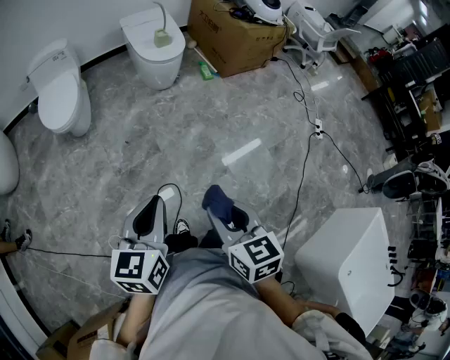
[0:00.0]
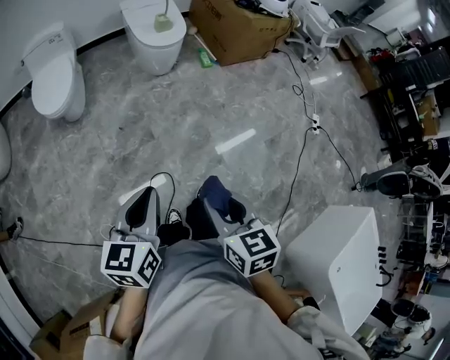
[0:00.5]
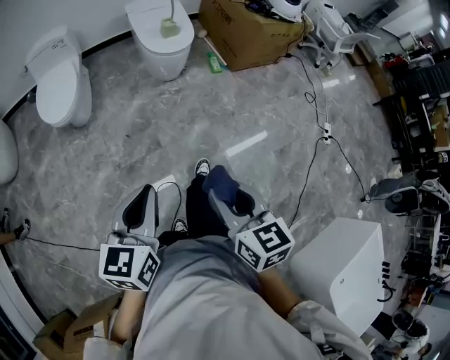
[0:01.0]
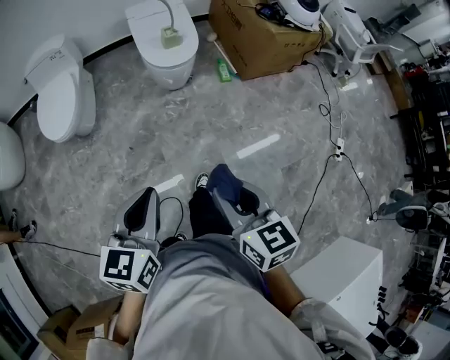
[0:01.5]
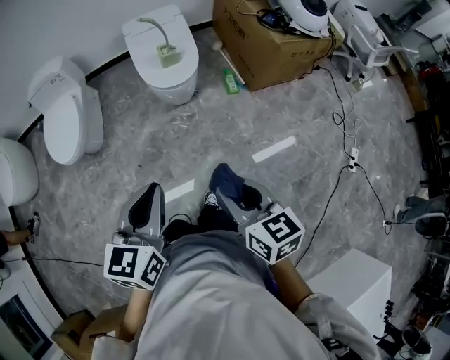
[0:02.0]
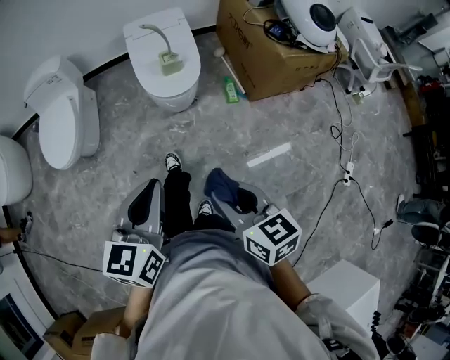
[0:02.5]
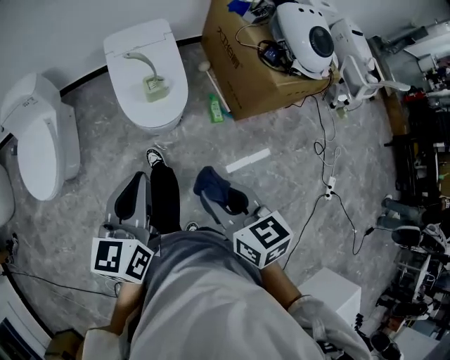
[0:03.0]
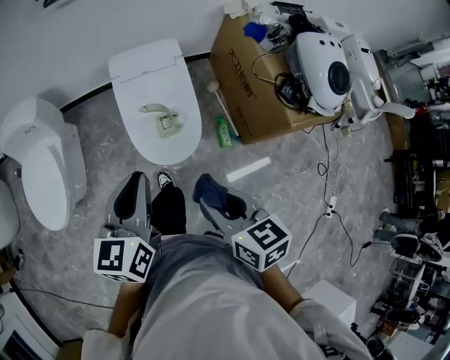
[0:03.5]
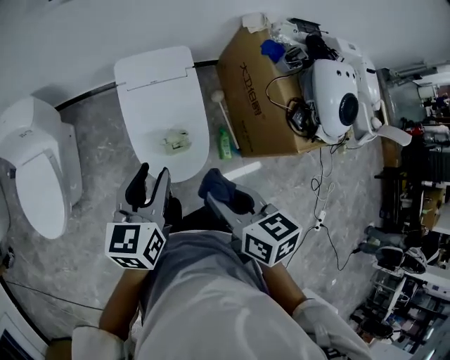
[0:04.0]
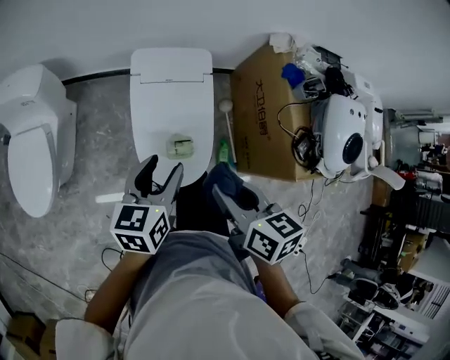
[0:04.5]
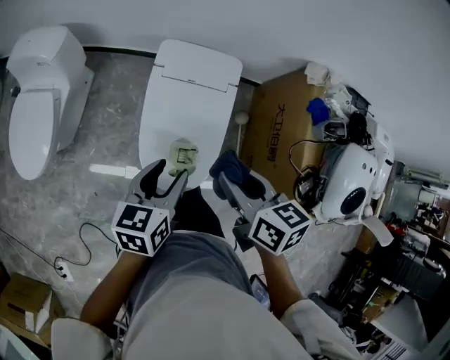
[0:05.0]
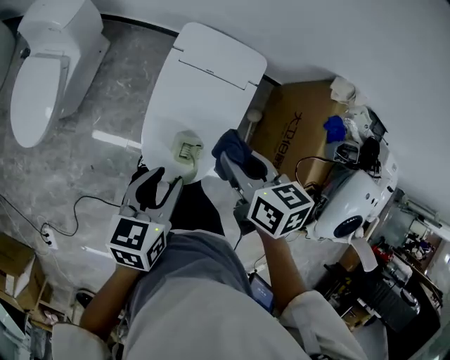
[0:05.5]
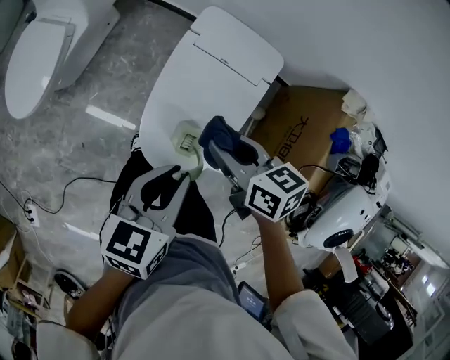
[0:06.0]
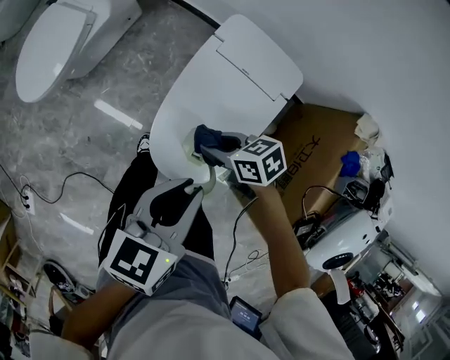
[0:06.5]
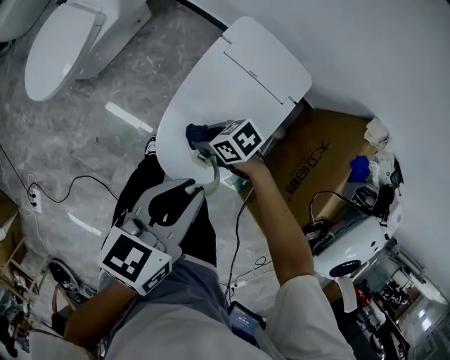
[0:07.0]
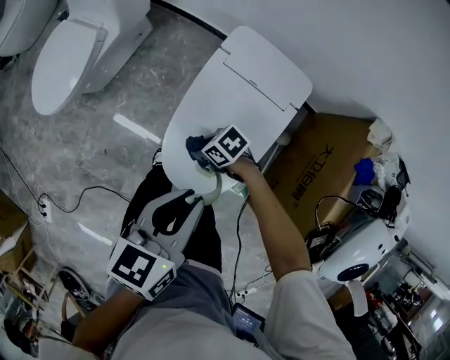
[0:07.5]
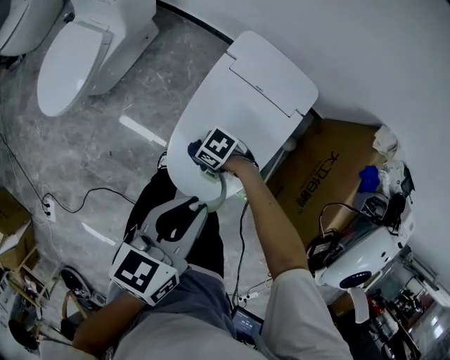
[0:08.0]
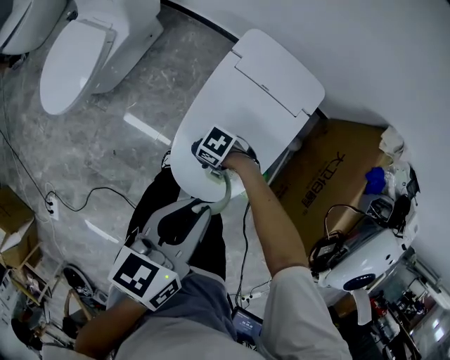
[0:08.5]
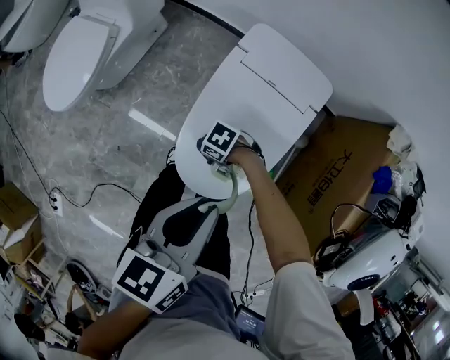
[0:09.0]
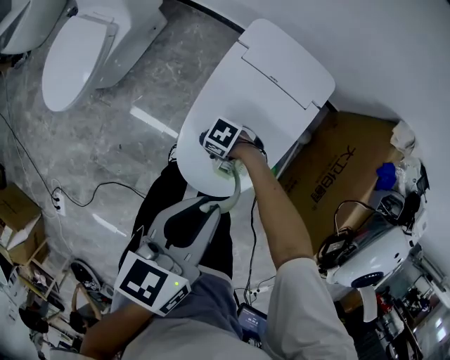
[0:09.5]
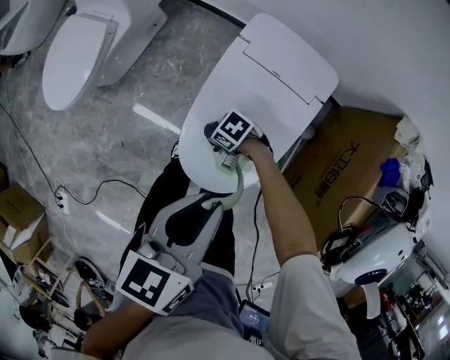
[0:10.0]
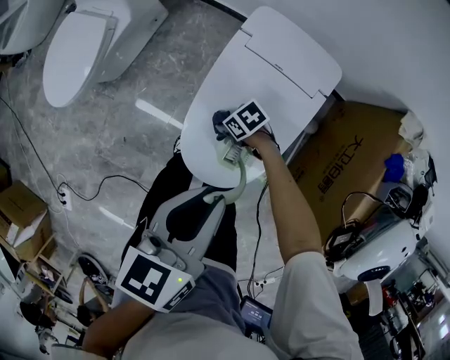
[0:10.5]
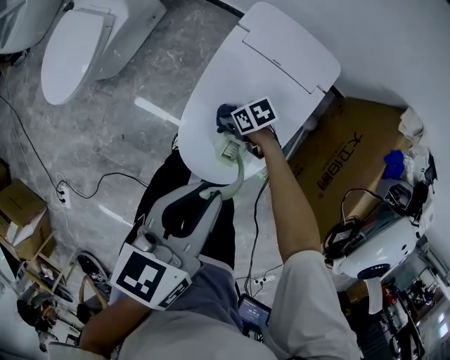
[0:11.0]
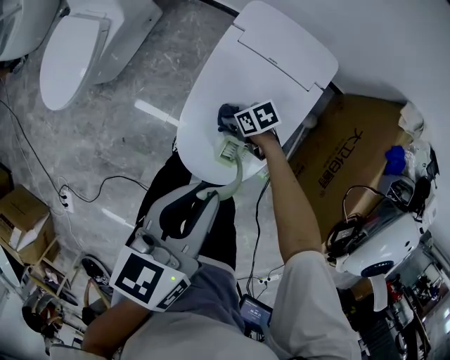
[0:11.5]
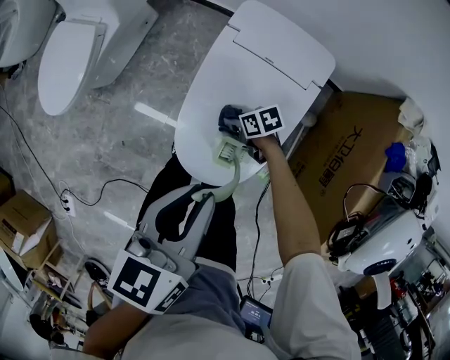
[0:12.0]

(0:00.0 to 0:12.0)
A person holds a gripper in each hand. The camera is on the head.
0:00.0 - 0:02.0: The pair of grippers is taken forward, some 50 cm.
0:02.0 - 0:04.0: The two grippers travel together, forward, about 60 cm.
0:04.0 - 0:06.0: The right gripper shifts by approximately 30 cm, and turns by approximately 40 degrees. The left gripper shifts approximately 10 cm downward, and changes its angle by roughly 30 degrees.
0:06.0 - 0:08.0: The right gripper moves downward, some 25 cm, and rotates roughly 60 degrees.
0:08.0 - 0:10.0: The right gripper is displaced downward by some 5 cm.
0:10.0 - 0:12.0: The right gripper shifts by roughly 10 cm, and rotates about 40 degrees.

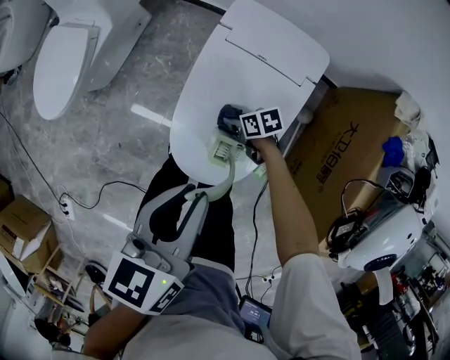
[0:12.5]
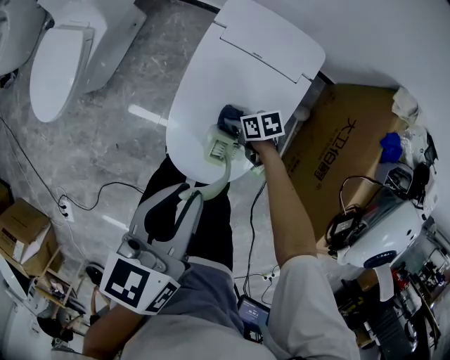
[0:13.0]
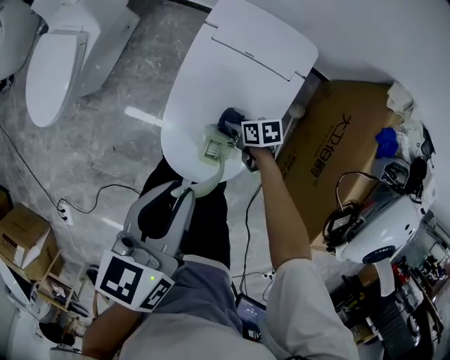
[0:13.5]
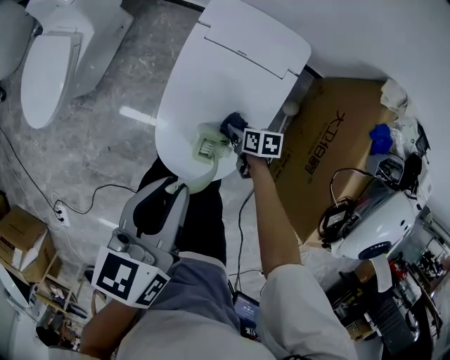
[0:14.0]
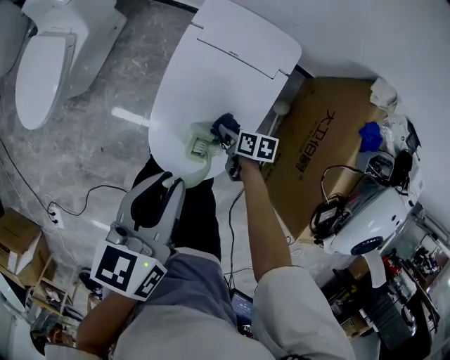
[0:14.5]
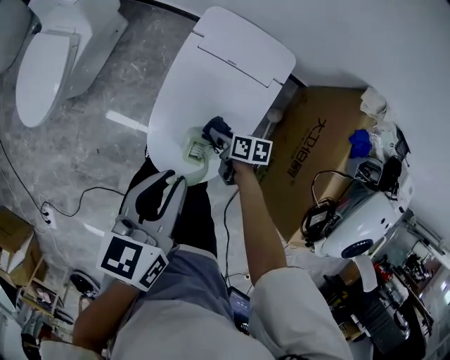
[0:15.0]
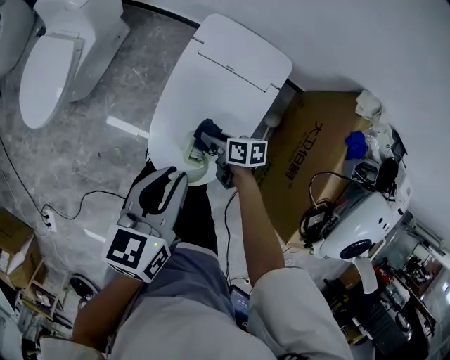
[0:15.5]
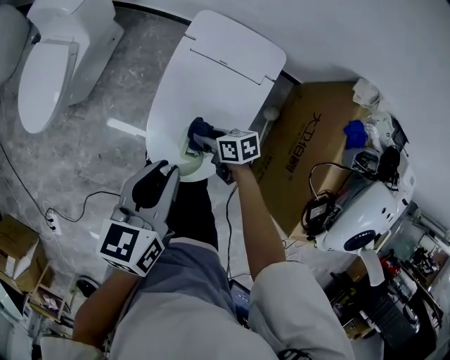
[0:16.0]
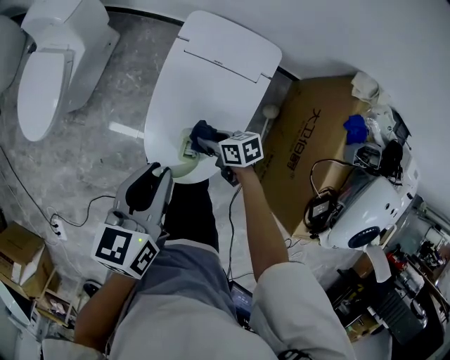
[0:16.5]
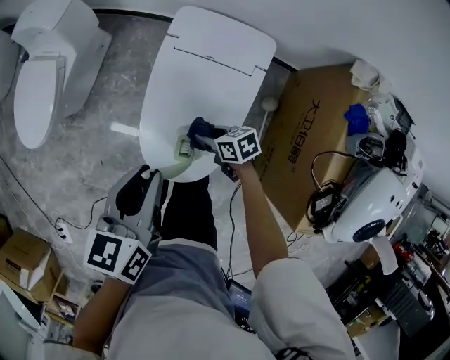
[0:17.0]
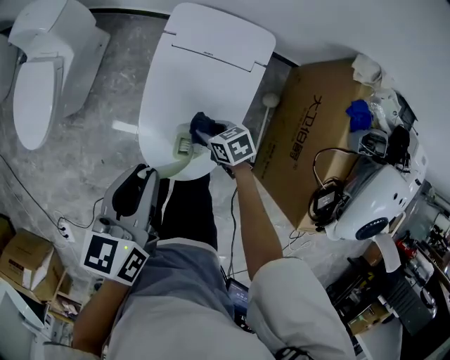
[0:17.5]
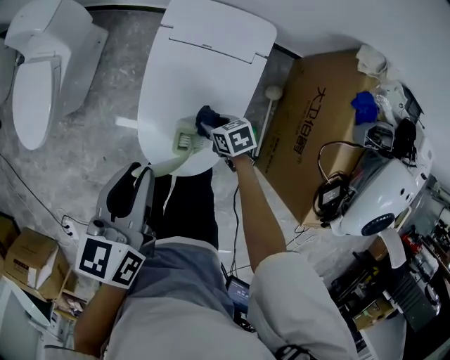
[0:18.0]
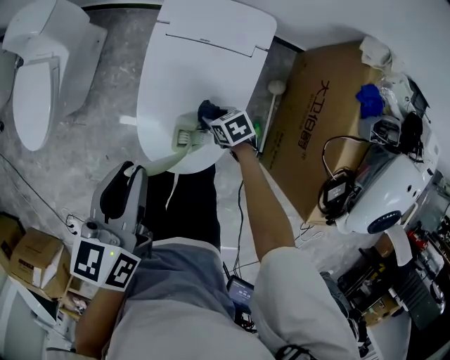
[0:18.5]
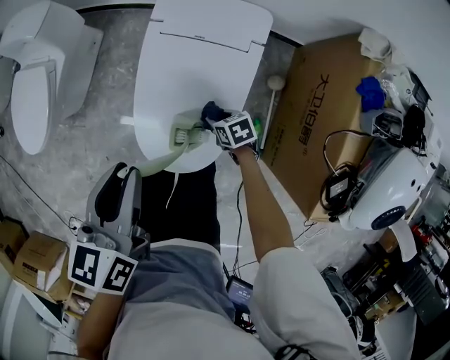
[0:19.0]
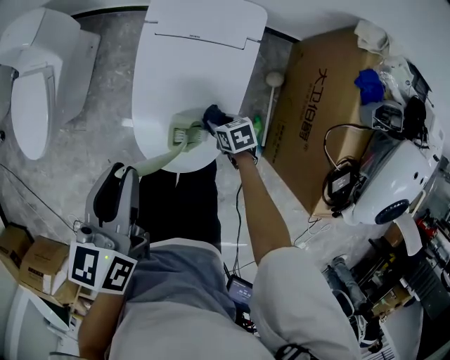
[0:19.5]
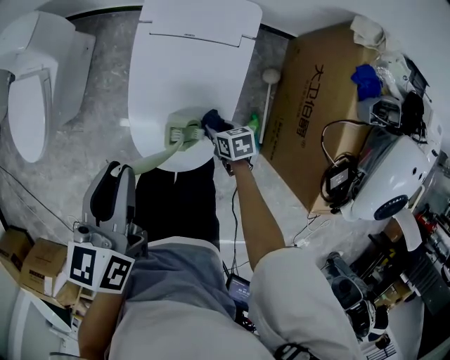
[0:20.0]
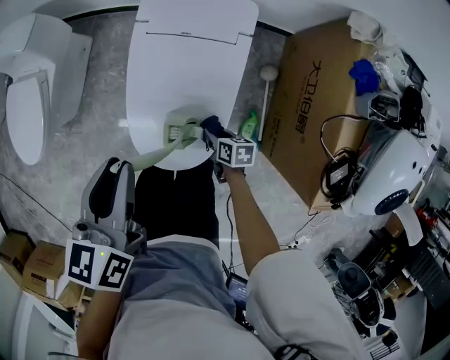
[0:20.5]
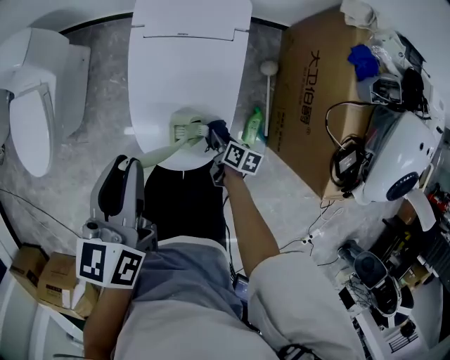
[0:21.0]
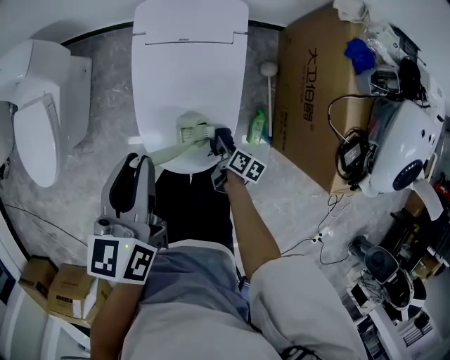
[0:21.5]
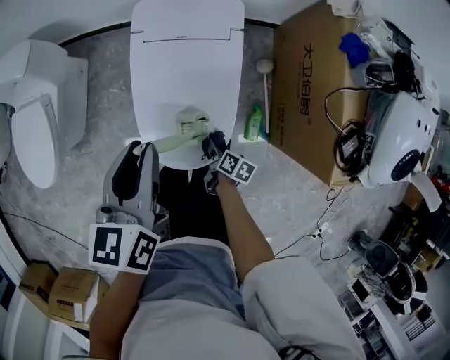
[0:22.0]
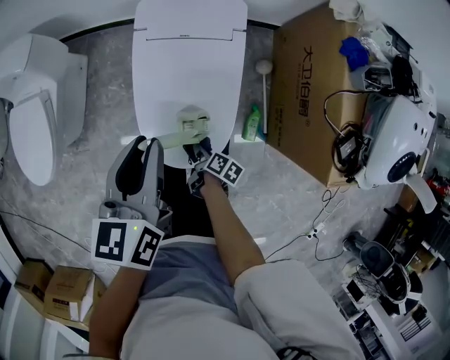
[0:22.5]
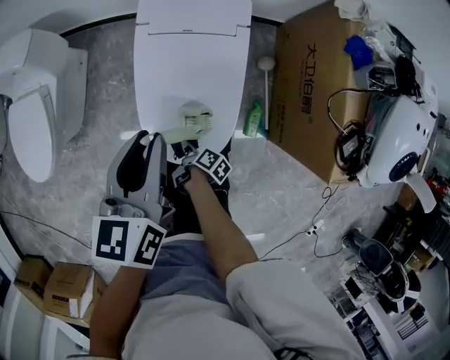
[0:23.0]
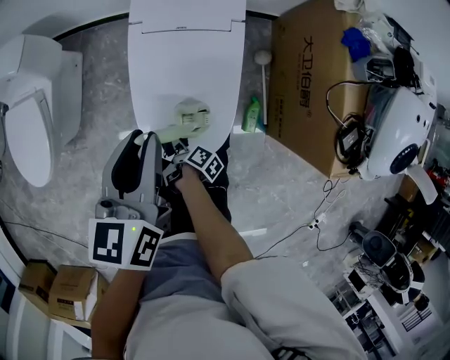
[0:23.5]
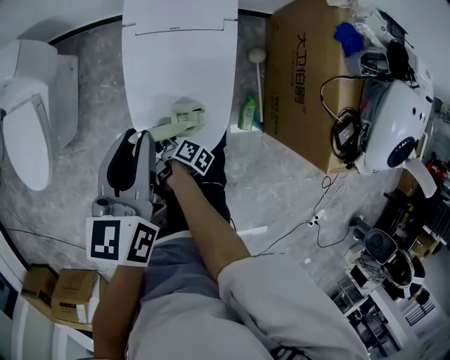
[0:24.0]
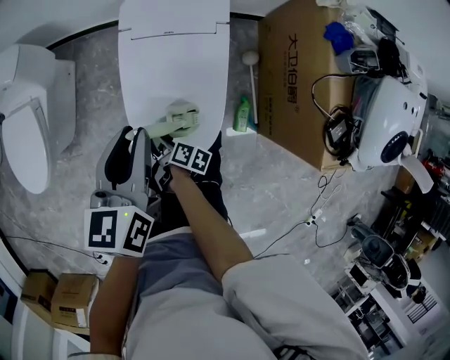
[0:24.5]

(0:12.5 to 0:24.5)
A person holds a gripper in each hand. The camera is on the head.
0:12.5 - 0:14.5: The right gripper travels to the right and backward by some 10 cm, and changes its angle by about 30 degrees.
0:14.5 - 0:16.5: The right gripper goes roughly 10 cm upward, and changes its angle by some 30 degrees.
0:16.5 - 0:18.5: The right gripper goes some 10 cm downward.
0:18.5 - 0:20.5: The right gripper goes some 10 cm backward, and rotates approximately 40 degrees.
0:20.5 - 0:22.5: The right gripper travels to the left and backward by some 10 cm, and rolls clockwise, seen from behind, by roughly 40 degrees.
0:22.5 - 0:24.5: The right gripper moves to the left, upward and forward, roughly 10 cm.

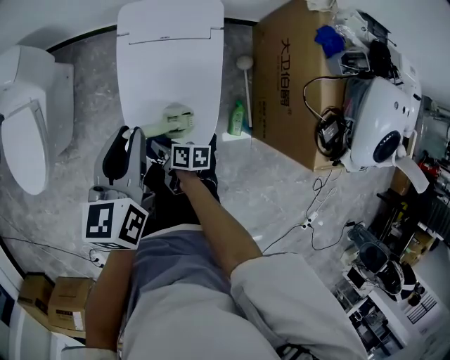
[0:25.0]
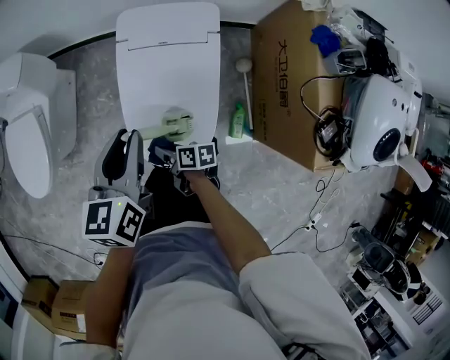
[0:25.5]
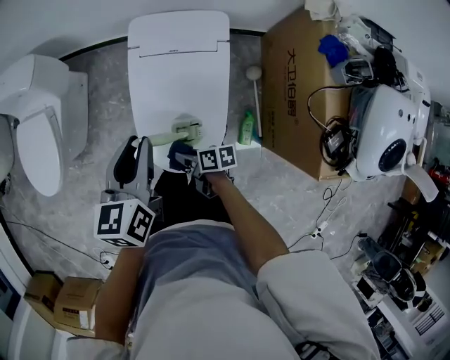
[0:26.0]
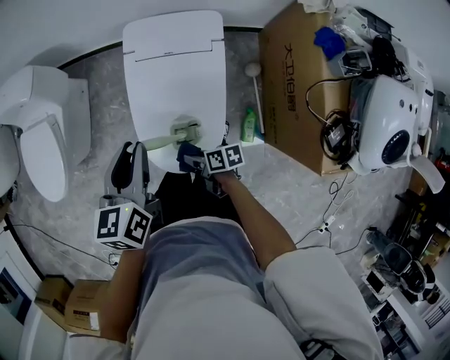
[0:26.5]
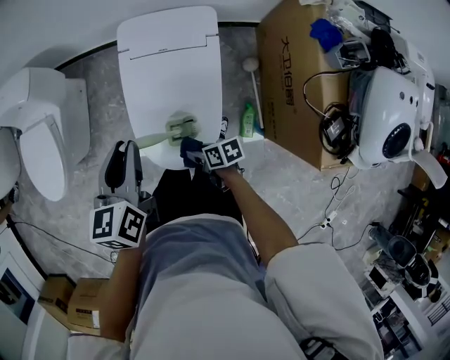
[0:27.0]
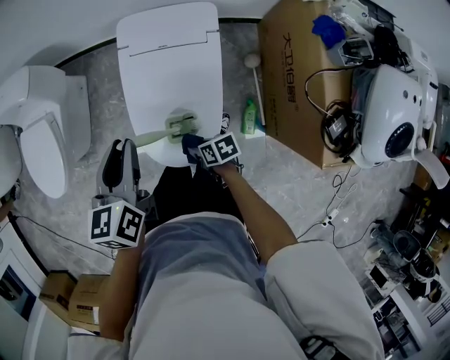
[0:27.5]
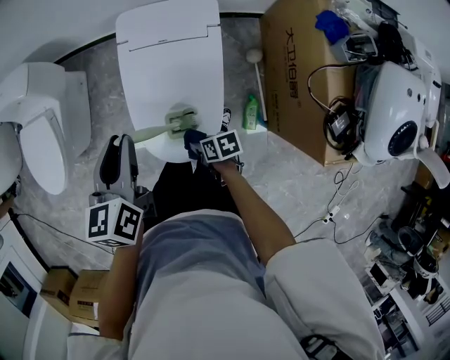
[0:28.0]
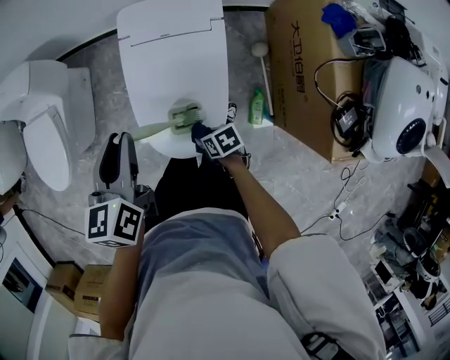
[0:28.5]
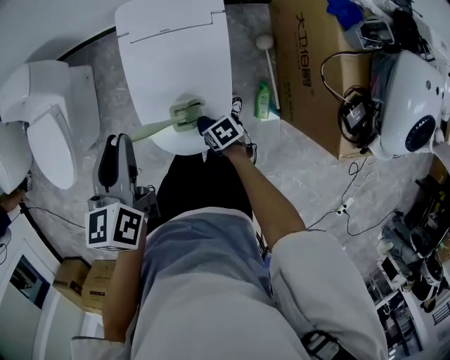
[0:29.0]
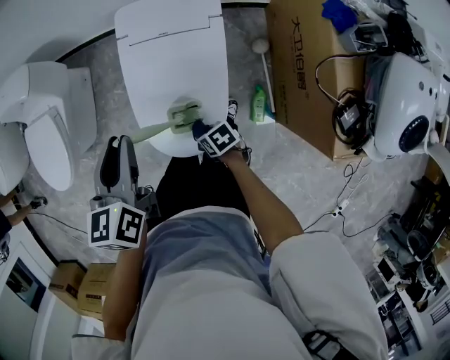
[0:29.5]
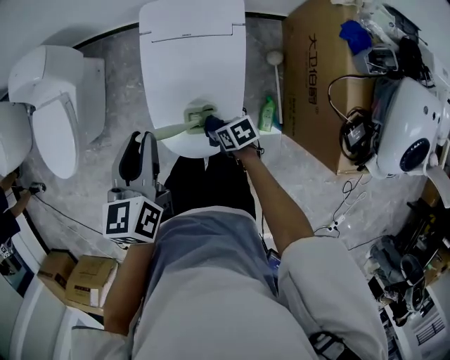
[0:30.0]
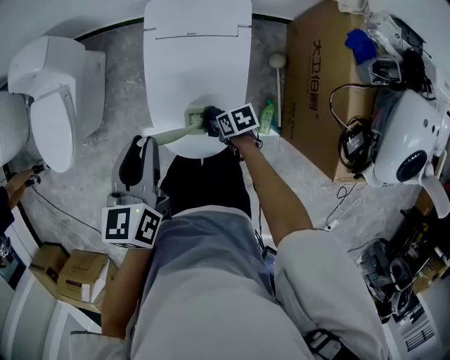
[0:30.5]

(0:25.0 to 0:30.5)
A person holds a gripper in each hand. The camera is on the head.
0:25.0 - 0:27.0: The right gripper goes about 10 cm to the right and backward, and turns by approximately 20 degrees.
0:27.0 - 0:28.5: The grippers stay close to where they were, moving slightly.
0:28.5 - 0:30.5: The right gripper travels forward by roughly 5 cm.
